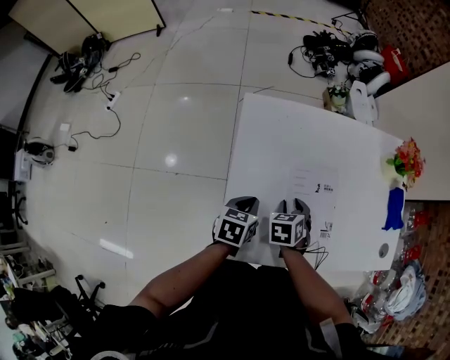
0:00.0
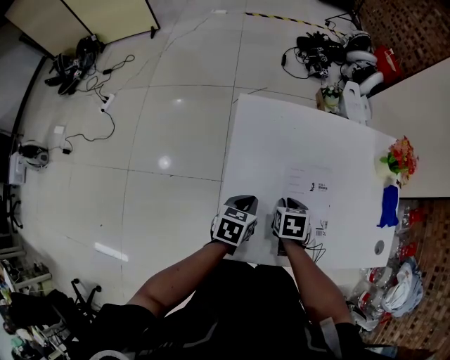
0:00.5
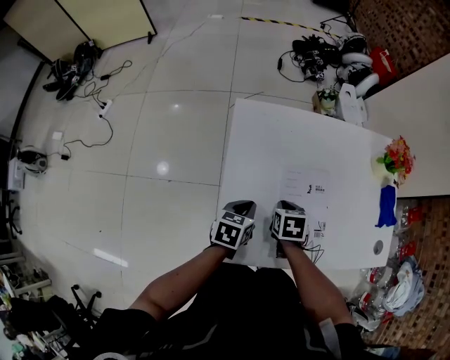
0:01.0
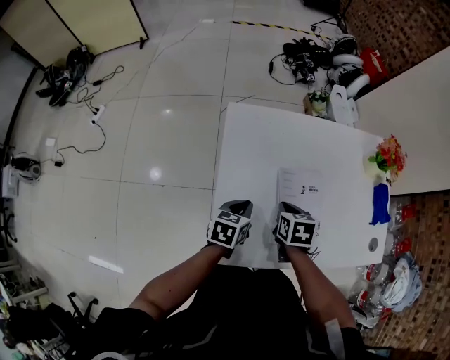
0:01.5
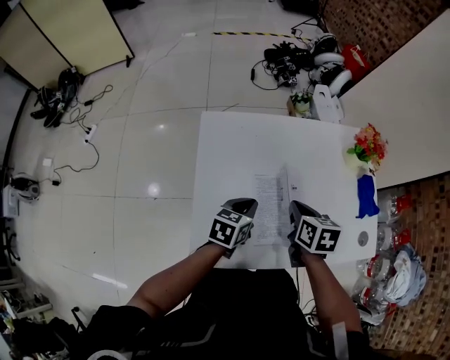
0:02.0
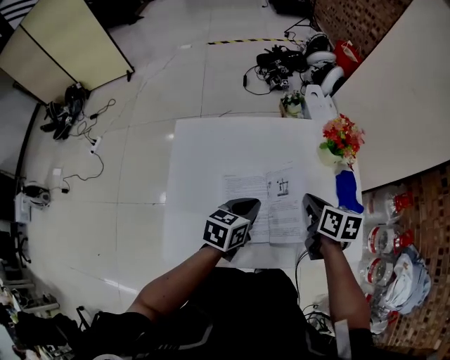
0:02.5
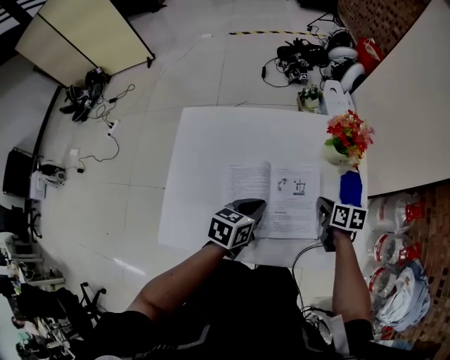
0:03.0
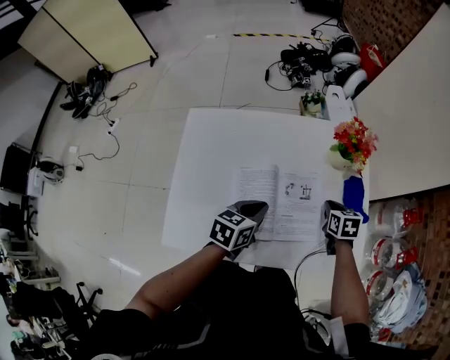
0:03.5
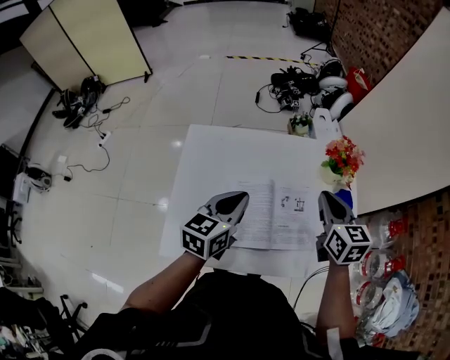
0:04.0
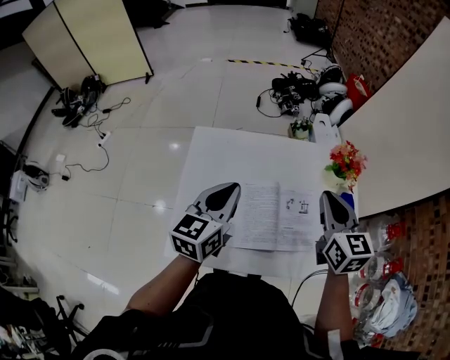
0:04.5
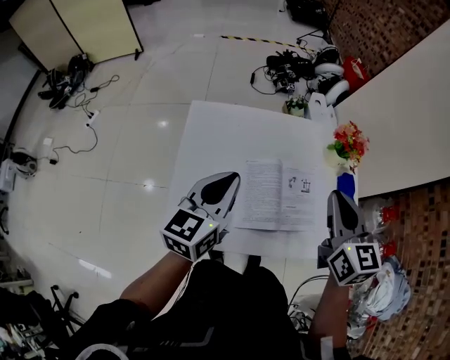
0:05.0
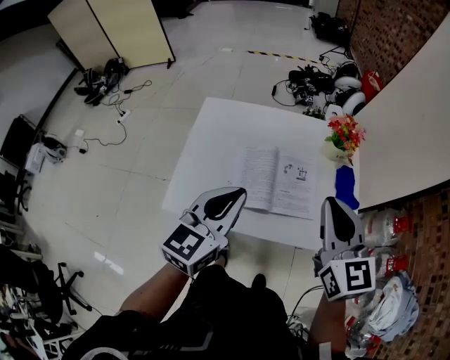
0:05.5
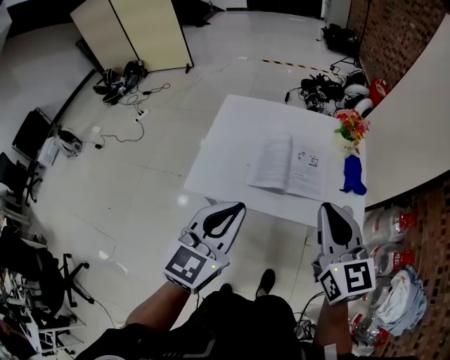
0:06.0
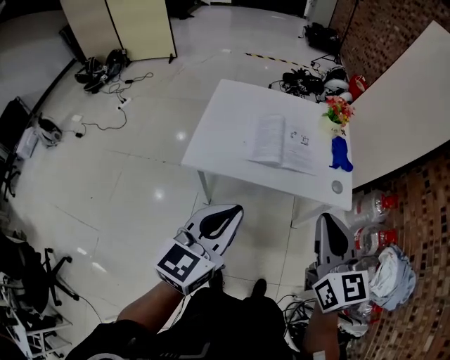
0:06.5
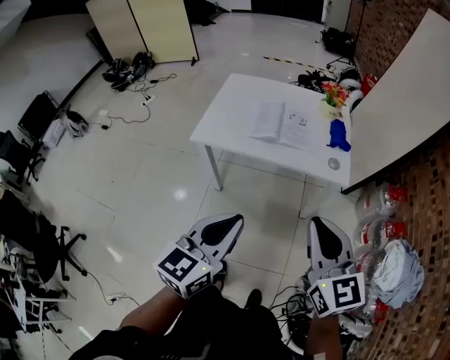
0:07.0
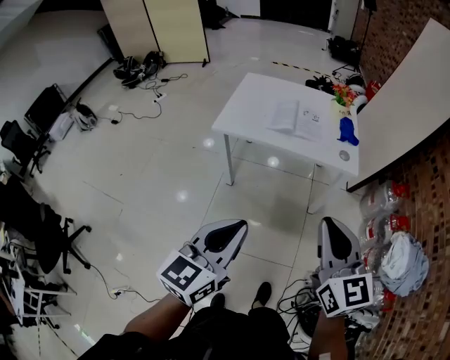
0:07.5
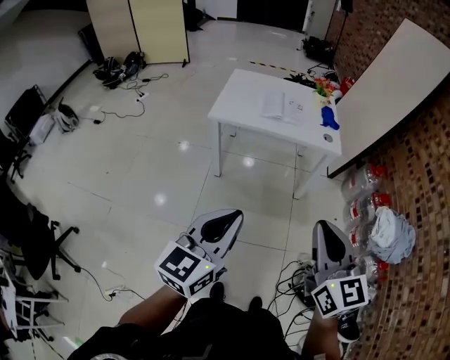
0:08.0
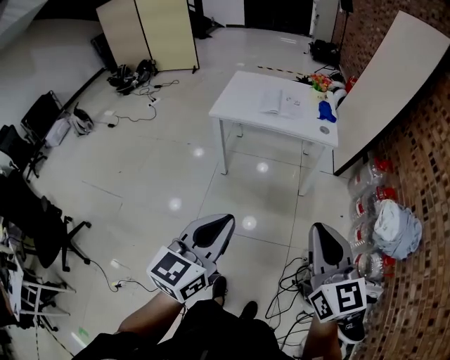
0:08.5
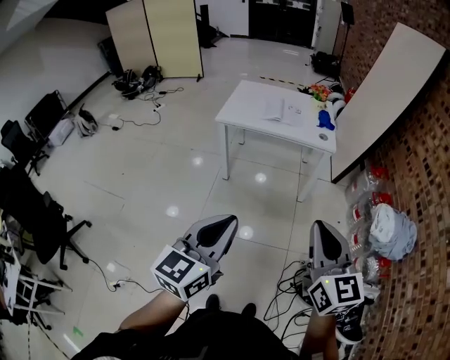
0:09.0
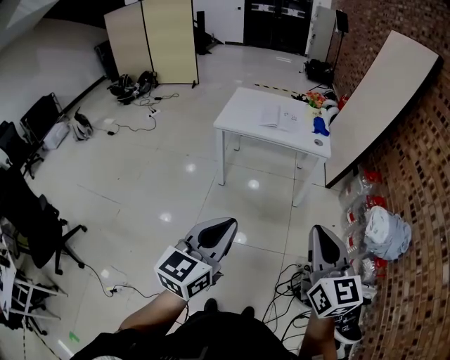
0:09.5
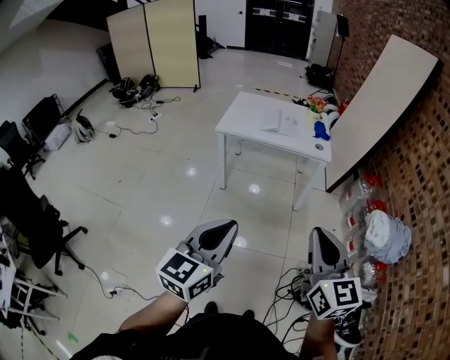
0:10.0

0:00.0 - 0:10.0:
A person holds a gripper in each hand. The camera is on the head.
0:00.0 - 0:02.0: The right gripper heads upward and to the right, covering some 15 cm, swivels some 30 degrees, and closes. Meanwhile the left gripper goes approximately 10 cm to the right and upward.
0:02.0 - 0:04.0: The left gripper heads upward and to the right, covering roughly 20 cm, and turns by about 20 degrees. The right gripper is displaced to the right and upward by roughly 25 cm, and changes its angle by roughly 30 degrees.
0:04.0 - 0:06.0: Both grippers move backward, approximately 30 cm. The right gripper rotates roughly 20 degrees. The left gripper swivels about 30 degrees.
0:06.0 - 0:08.0: The two grippers travel together, backward, about 60 cm.
0:08.0 - 0:10.0: The grippers both shift backward by roughly 15 cm.

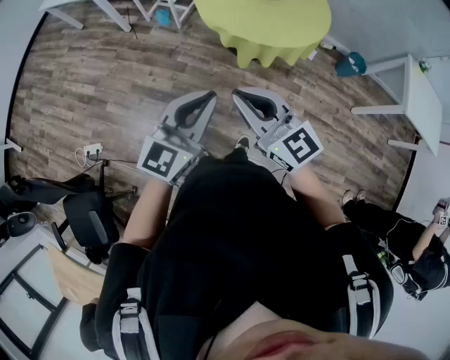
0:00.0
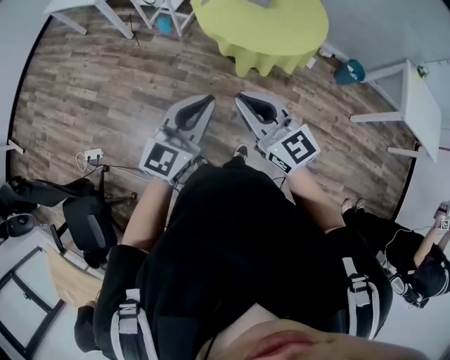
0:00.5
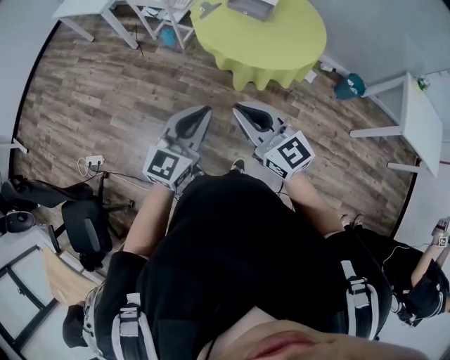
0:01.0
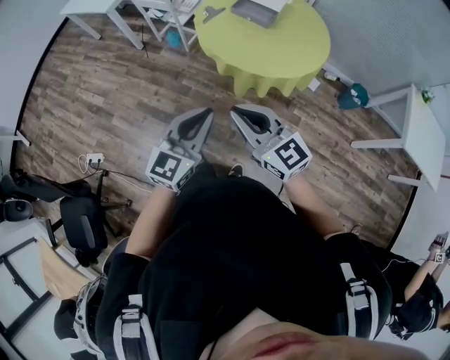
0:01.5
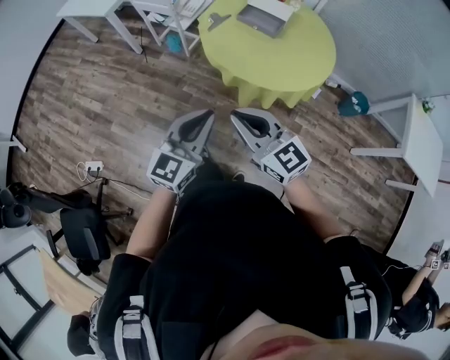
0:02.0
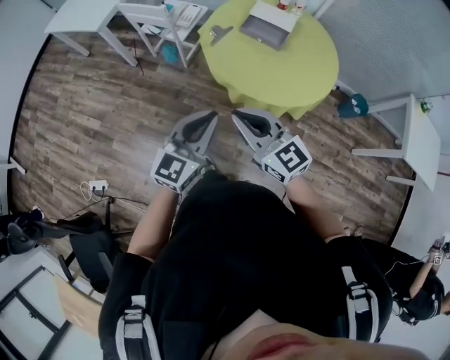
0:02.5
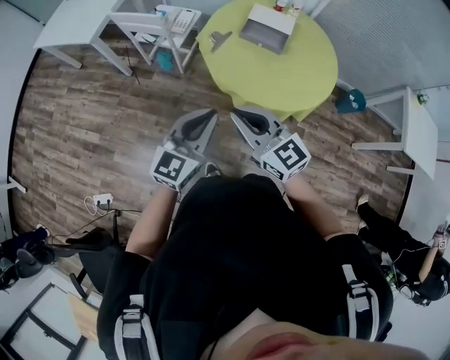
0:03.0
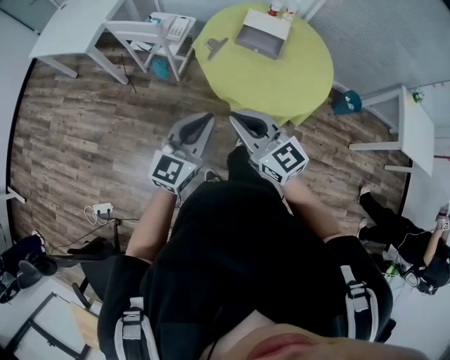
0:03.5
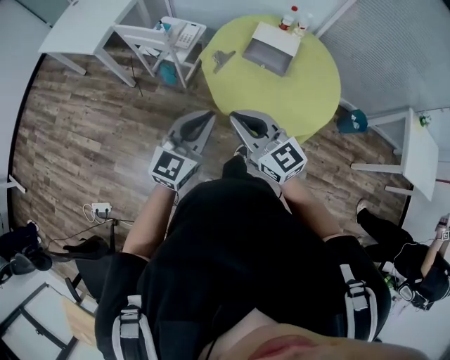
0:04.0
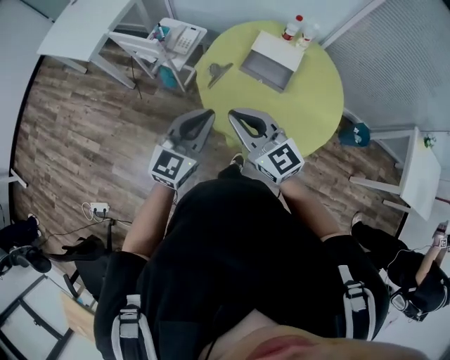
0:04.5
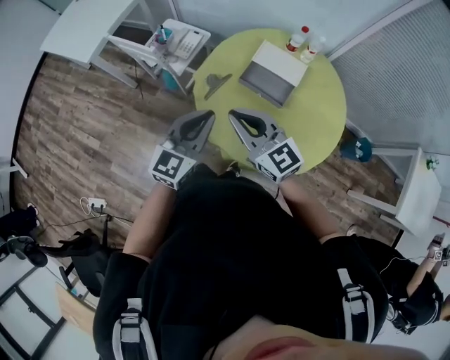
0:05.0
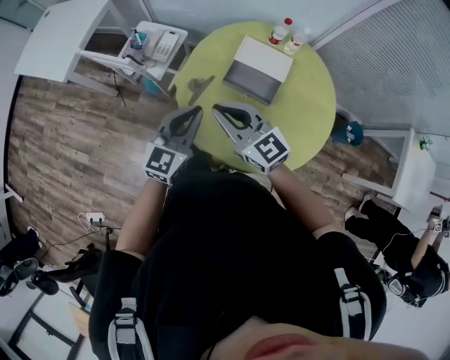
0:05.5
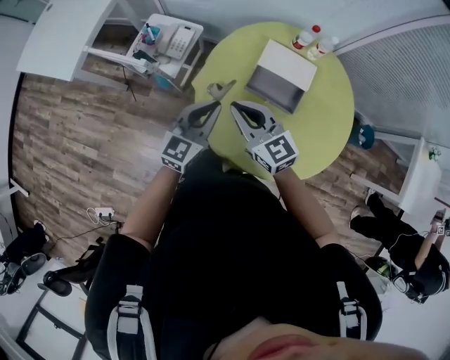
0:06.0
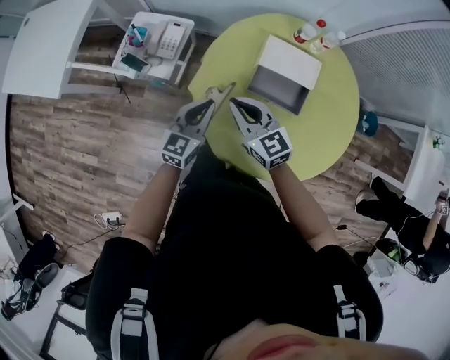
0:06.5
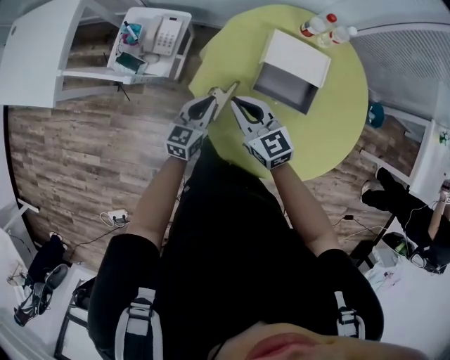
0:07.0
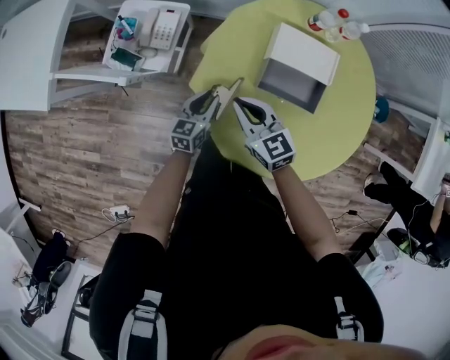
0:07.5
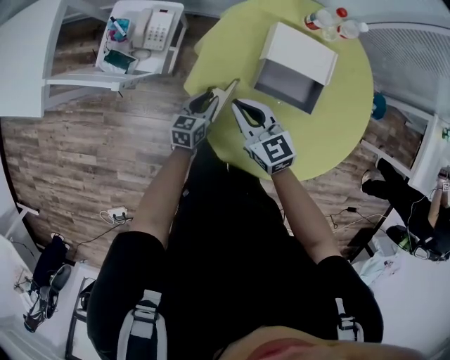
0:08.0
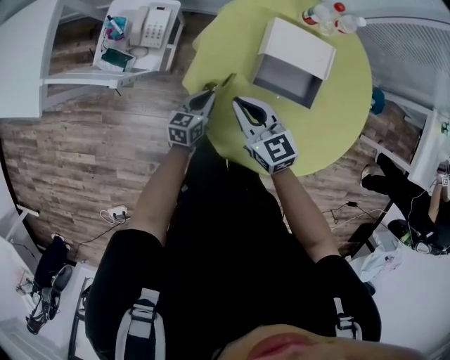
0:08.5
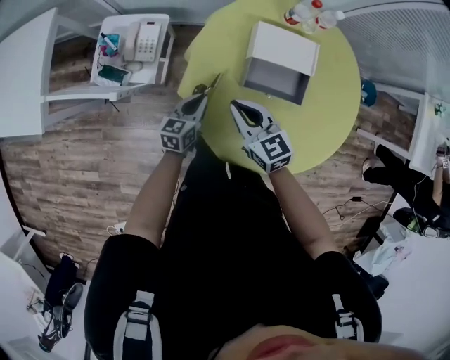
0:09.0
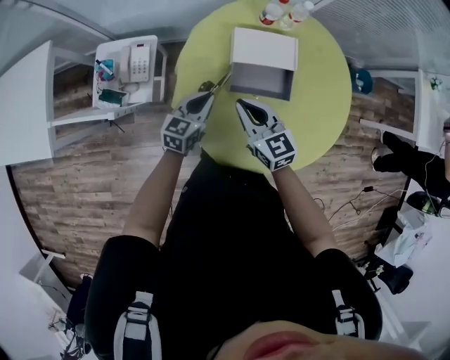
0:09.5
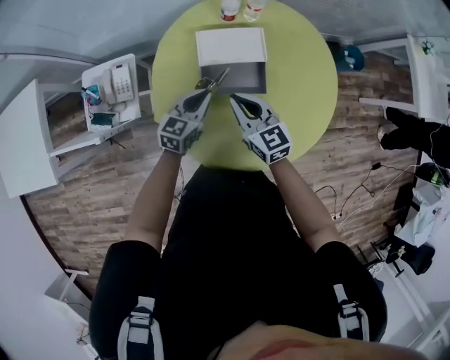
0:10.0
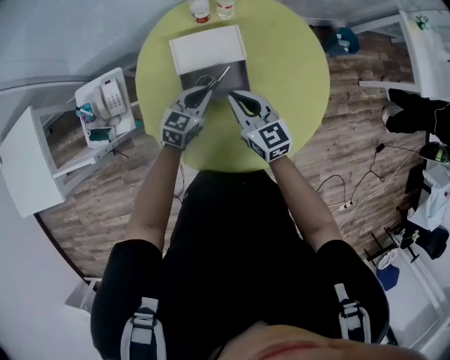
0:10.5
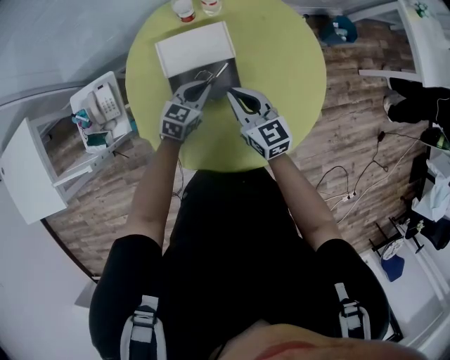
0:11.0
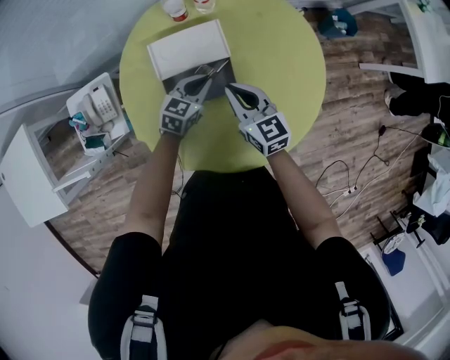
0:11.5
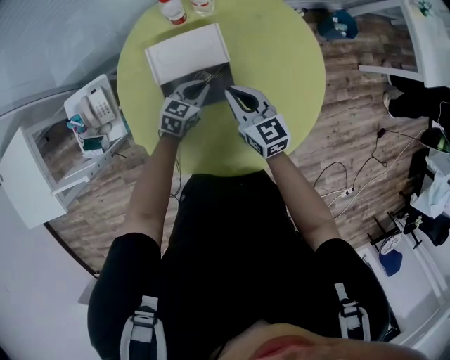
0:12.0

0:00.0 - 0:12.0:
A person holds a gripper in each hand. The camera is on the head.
0:00.0 - 0:02.0: Both grippers move forward, about 10 cm.
0:02.0 - 0:04.0: Both grippers move forward, about 25 cm.
0:04.0 - 0:06.0: Both grippers travel together forward, roughly 35 cm.
0:06.0 - 0:08.0: The left gripper heads downward, covering approximately 30 cm, rotates some 30 degrees, and opens. The right gripper travels downward and forward by roughly 20 cm.
0:08.0 - 0:10.0: The left gripper goes some 20 cm to the right and upward, rotates some 30 degrees, and closes. Meanwhile the right gripper heads to the right, covering approximately 15 cm, and rotates some 20 degrees.
0:10.0 - 0:12.0: The left gripper goes about 20 cm to the right, downward and forward, and changes its angle by about 20 degrees. Meanwhile the right gripper travels to the right, forward and downward by approximately 15 cm.

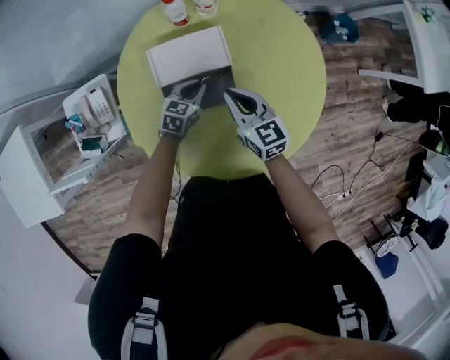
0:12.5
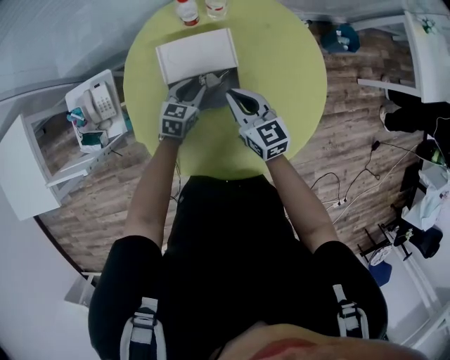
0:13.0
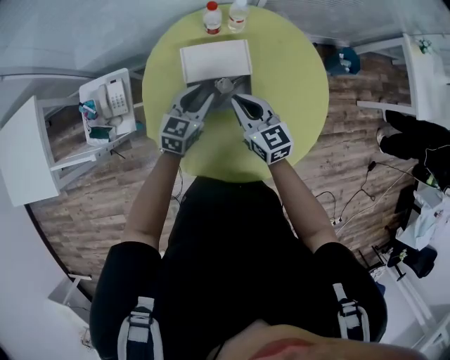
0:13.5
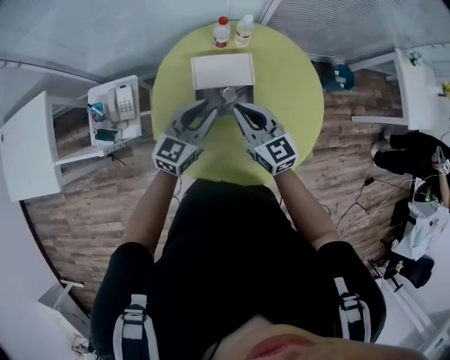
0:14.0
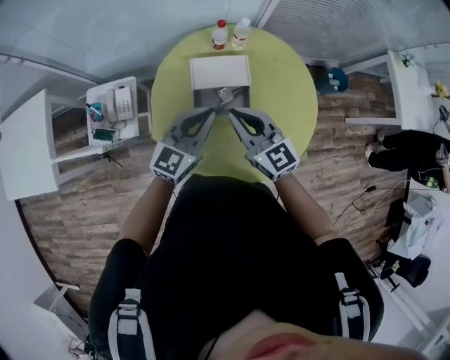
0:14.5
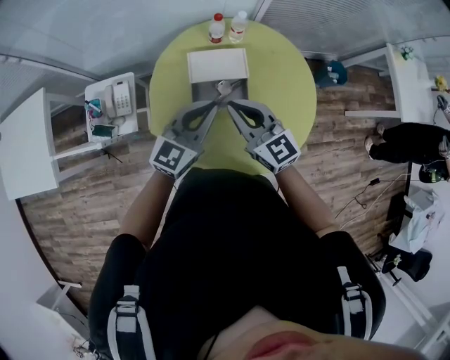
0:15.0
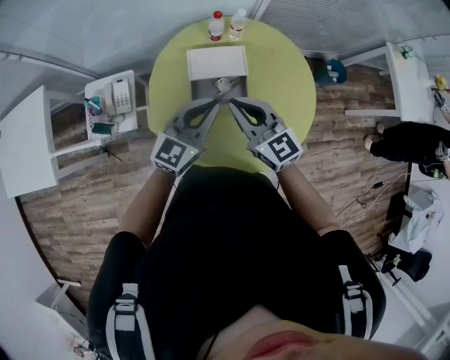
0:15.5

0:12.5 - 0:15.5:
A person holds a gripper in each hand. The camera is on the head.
0:12.5 - 0:14.0: The right gripper is displaced upward and to the left by some 15 cm; the left gripper travels upward by some 30 cm, and turns by approximately 30 degrees.
0:14.0 - 0:15.5: The two grippers go about 5 cm upward. The left gripper closes.

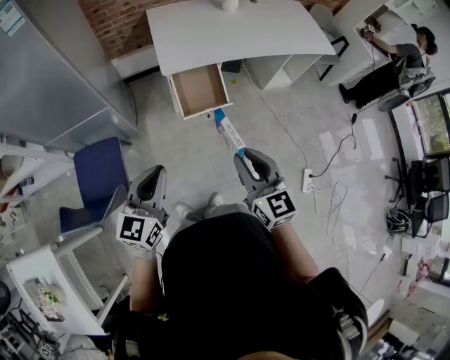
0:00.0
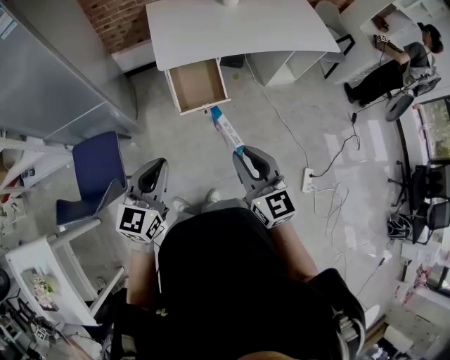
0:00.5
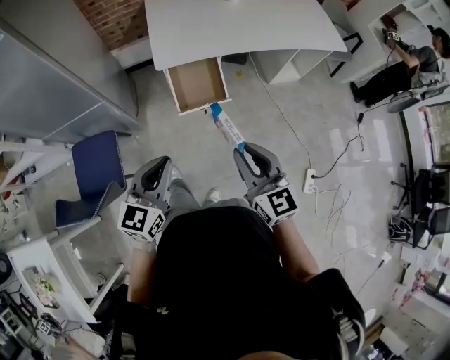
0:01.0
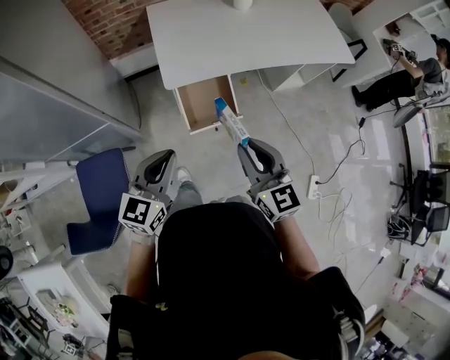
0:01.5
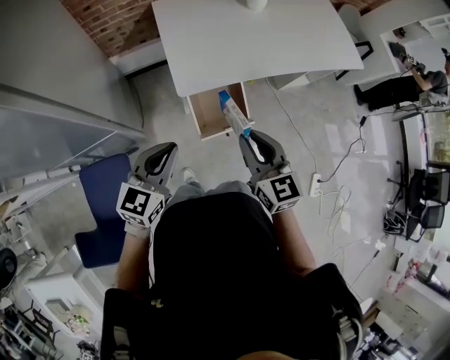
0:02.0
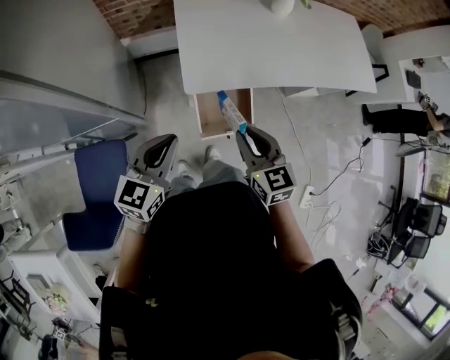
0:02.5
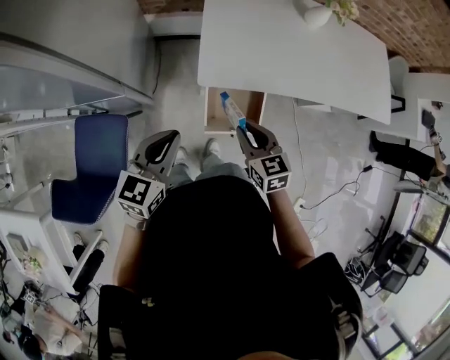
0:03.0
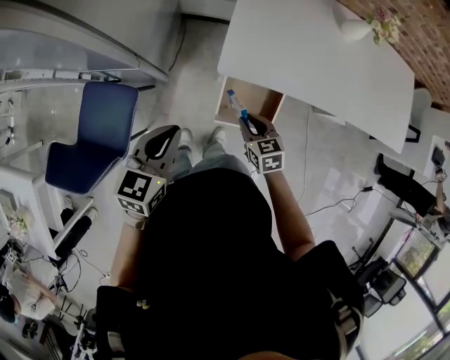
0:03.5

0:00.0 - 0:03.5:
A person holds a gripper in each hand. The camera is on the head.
0:00.0 - 0:02.0: Both grippers travel together forward, about 25 cm.
0:02.0 - 0:03.5: The right gripper shifts approximately 20 cm downward, and turns by about 40 degrees. Meanwhile the left gripper turns by roughly 30 degrees.
